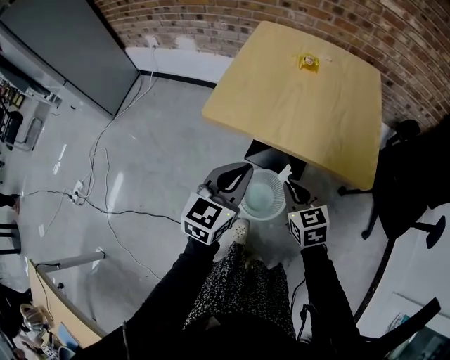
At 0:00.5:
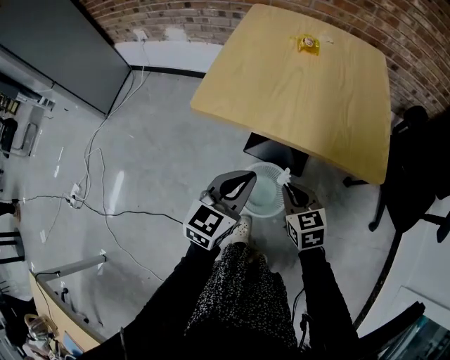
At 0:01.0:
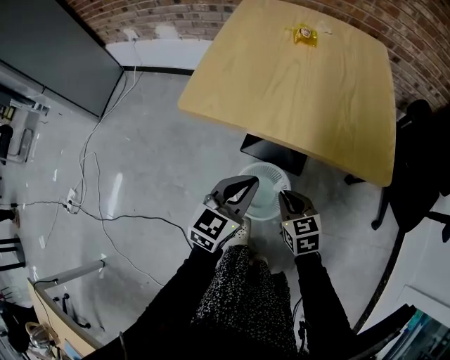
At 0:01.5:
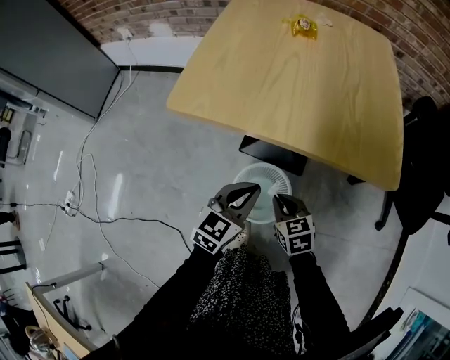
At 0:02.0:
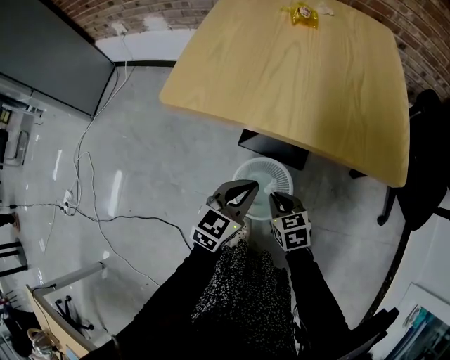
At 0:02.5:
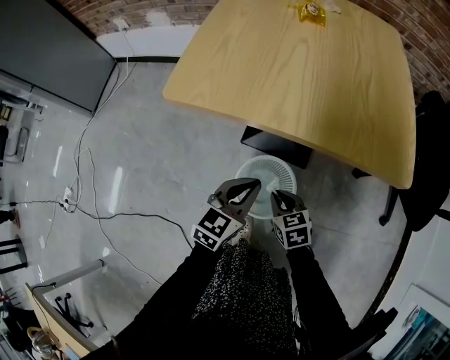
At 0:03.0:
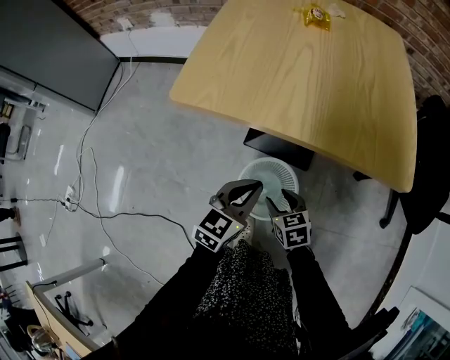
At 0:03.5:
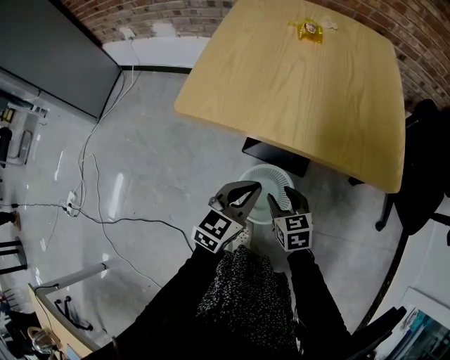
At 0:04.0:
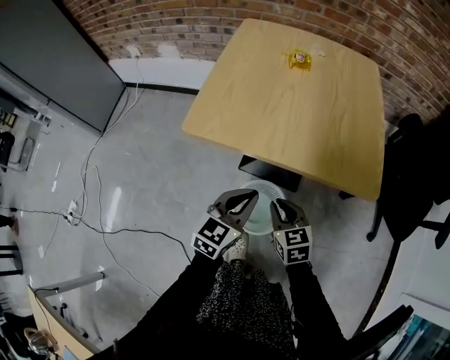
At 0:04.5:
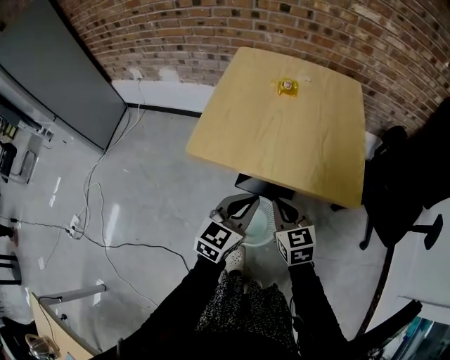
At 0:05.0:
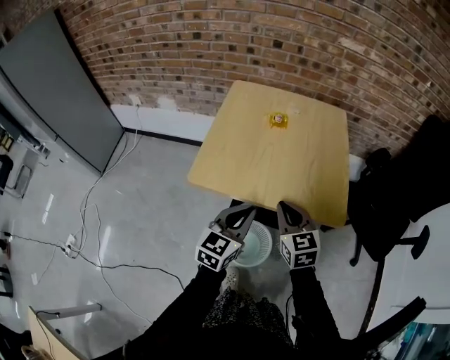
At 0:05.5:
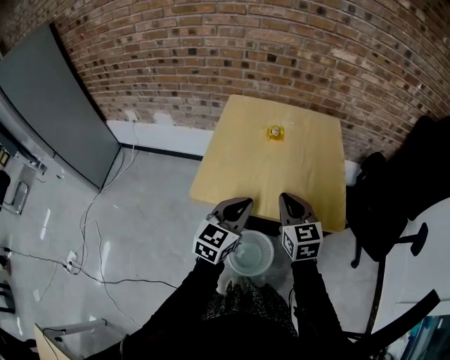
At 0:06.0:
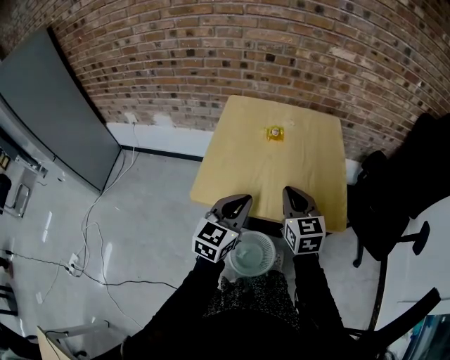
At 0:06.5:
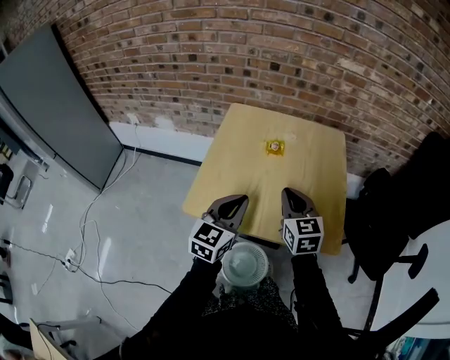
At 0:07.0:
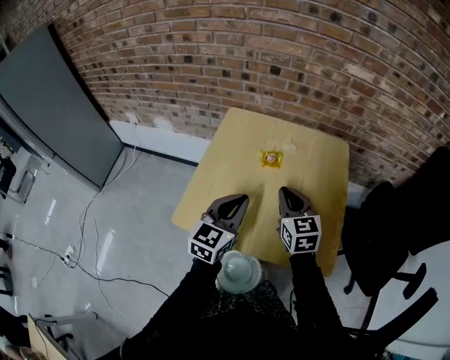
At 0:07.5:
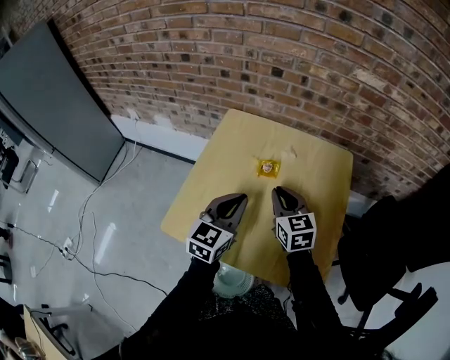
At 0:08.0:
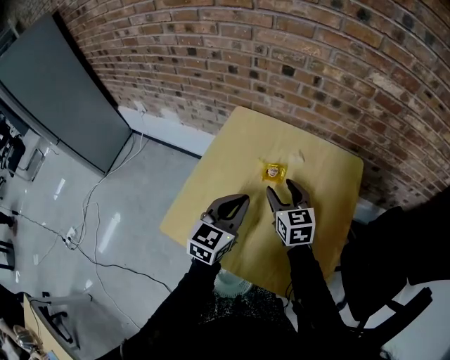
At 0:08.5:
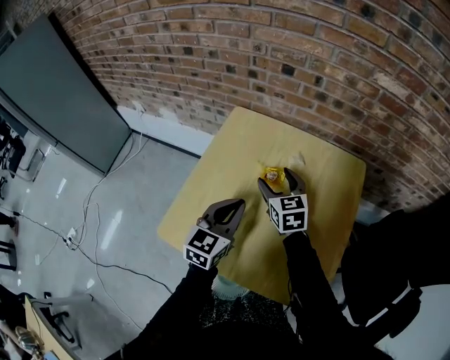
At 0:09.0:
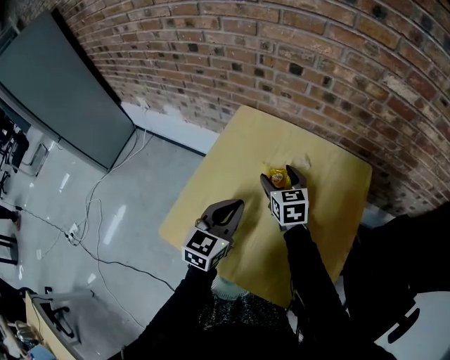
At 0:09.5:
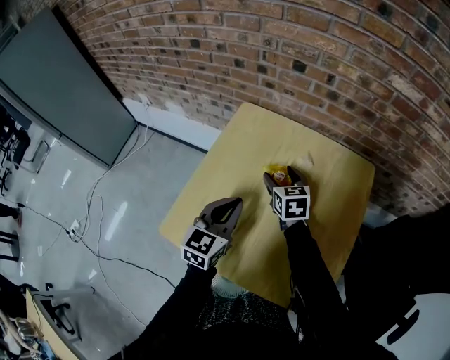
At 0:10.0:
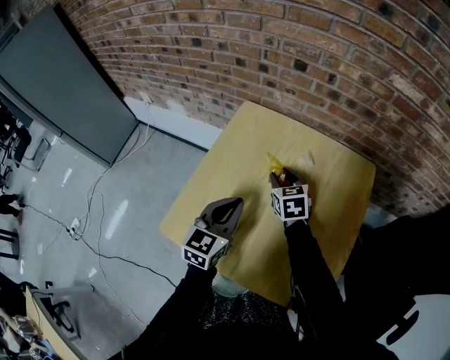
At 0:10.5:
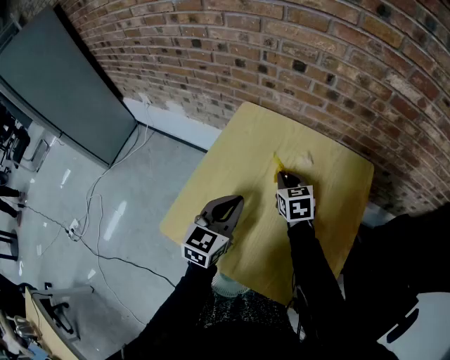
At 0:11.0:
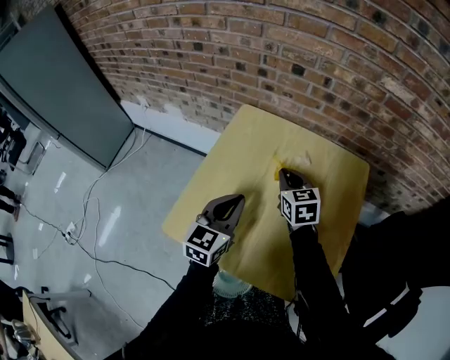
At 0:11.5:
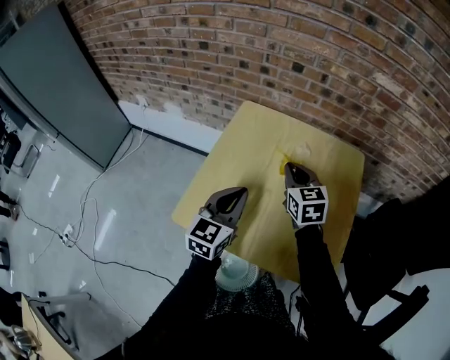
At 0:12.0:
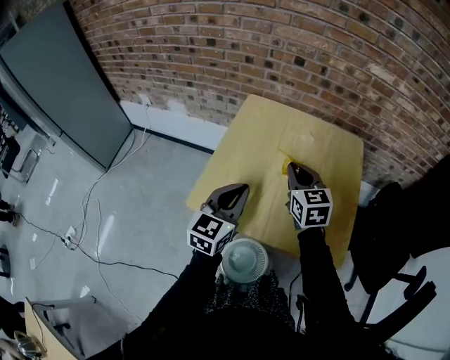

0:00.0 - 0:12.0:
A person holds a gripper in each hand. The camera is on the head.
0:00.0 - 0:02.0: Both grippers move downward, about 25 cm.
0:02.0 - 0:04.0: The two grippers go some 10 cm upward. The right gripper opens and closes again.
0:04.0 - 0:06.0: Both grippers travel together upward and forward, roughly 25 cm. The right gripper changes its angle by about 20 degrees.
0:06.0 - 0:08.0: Both grippers move forward, some 20 cm. The right gripper opens up.
0:08.0 - 0:10.0: The right gripper heads forward and downward, covering roughly 10 cm.
0:10.0 - 0:12.0: The right gripper goes approximately 20 cm backward and upward, and closes. The left gripper is displaced backward, to the left and upward by roughly 15 cm.

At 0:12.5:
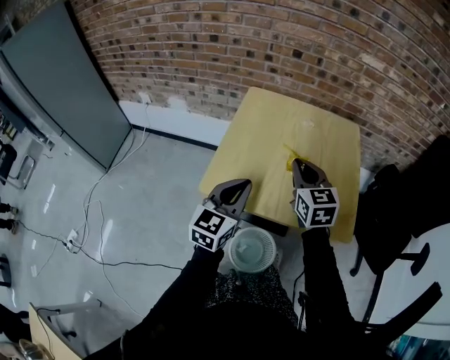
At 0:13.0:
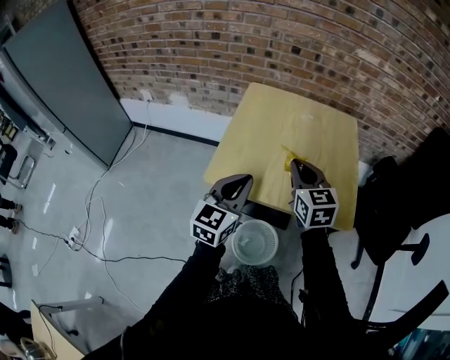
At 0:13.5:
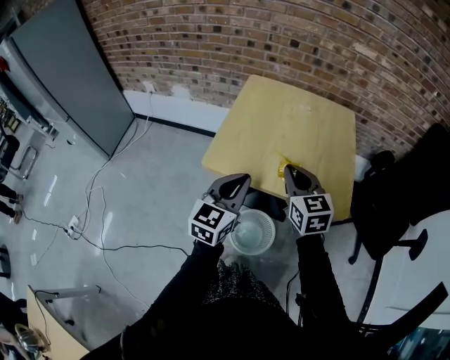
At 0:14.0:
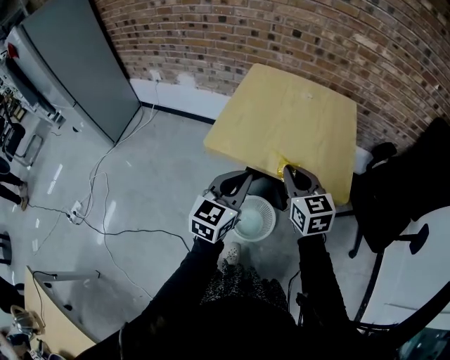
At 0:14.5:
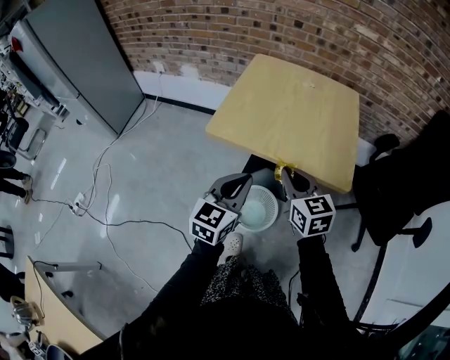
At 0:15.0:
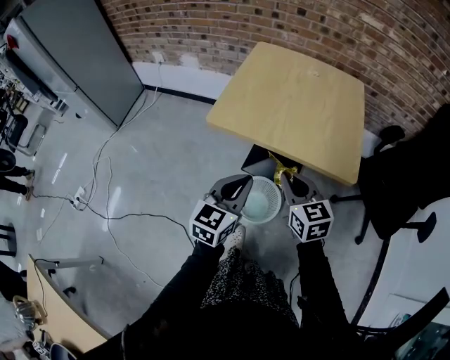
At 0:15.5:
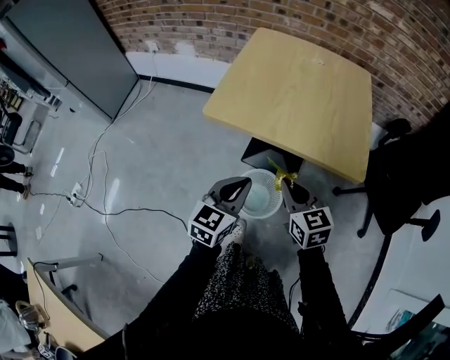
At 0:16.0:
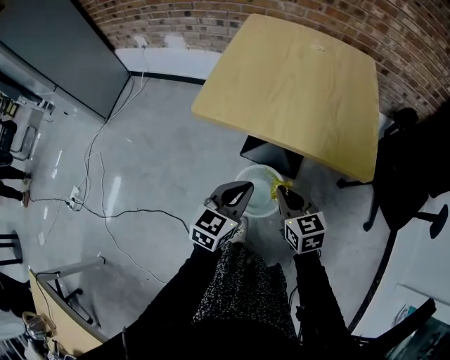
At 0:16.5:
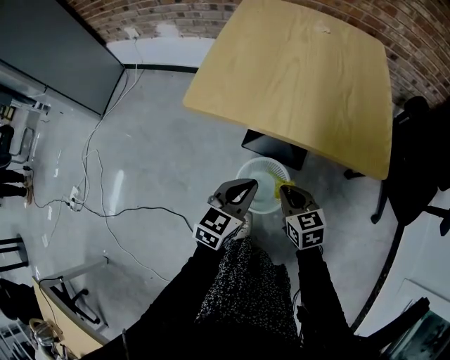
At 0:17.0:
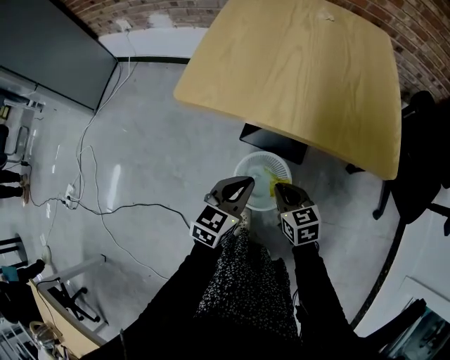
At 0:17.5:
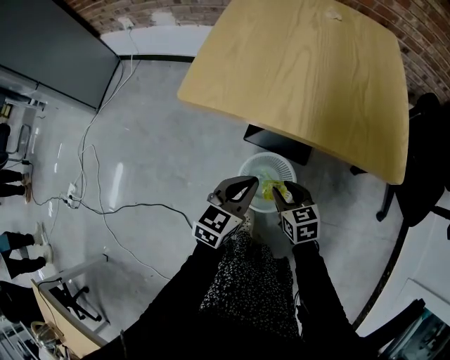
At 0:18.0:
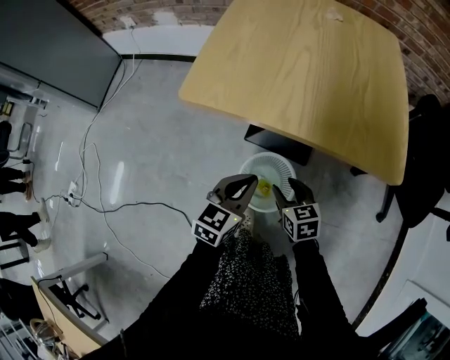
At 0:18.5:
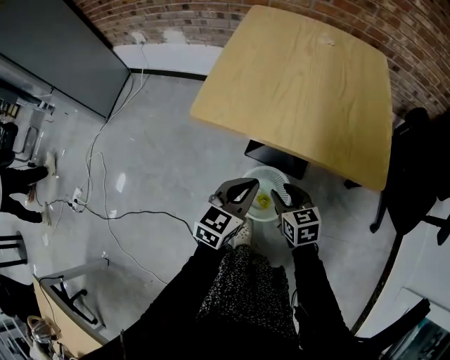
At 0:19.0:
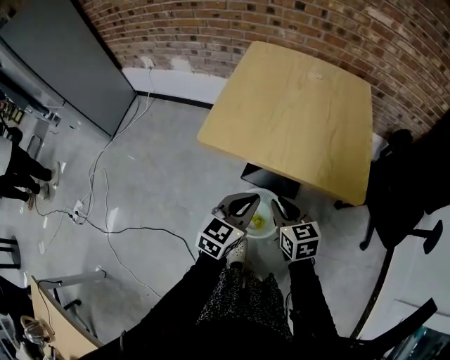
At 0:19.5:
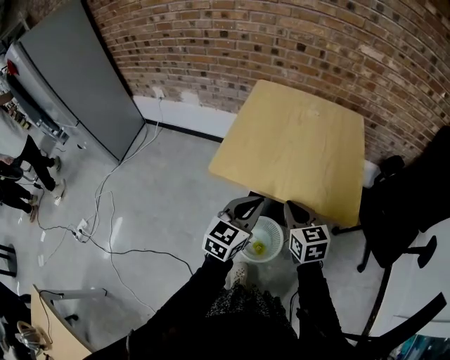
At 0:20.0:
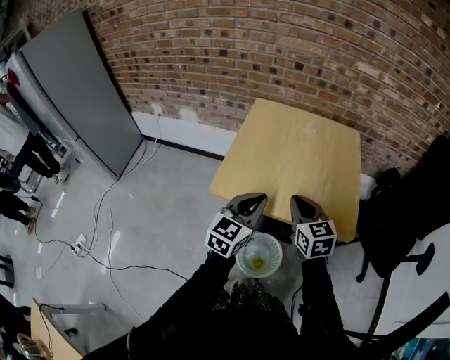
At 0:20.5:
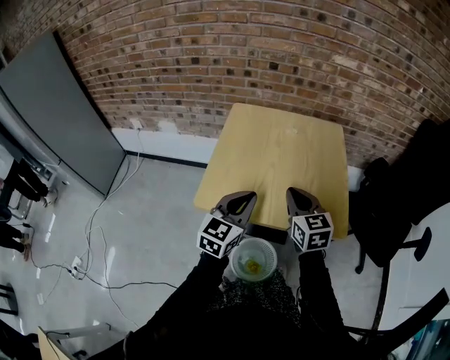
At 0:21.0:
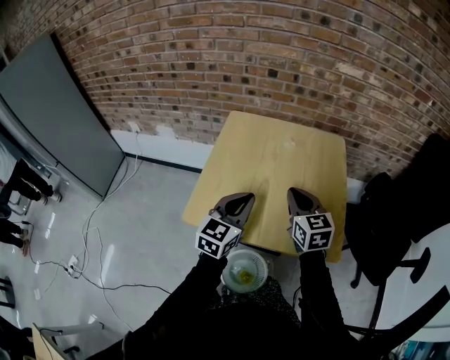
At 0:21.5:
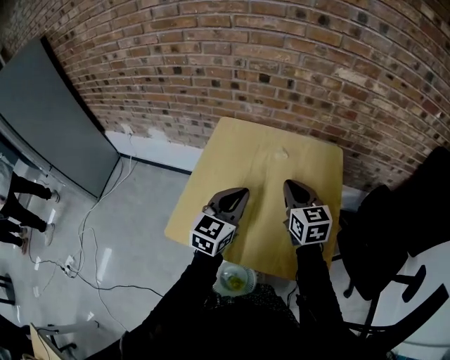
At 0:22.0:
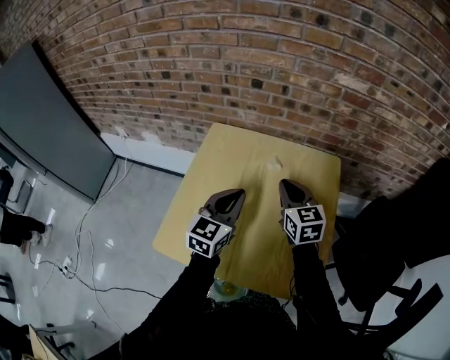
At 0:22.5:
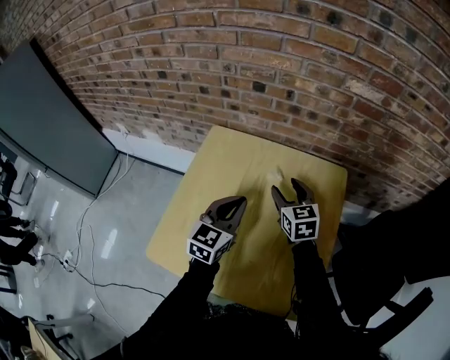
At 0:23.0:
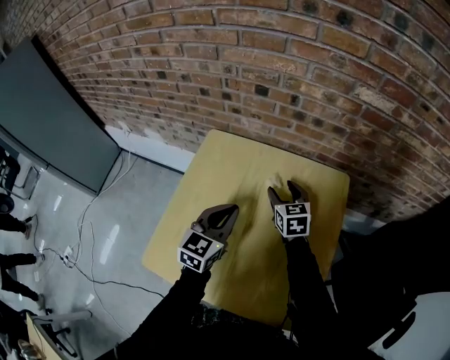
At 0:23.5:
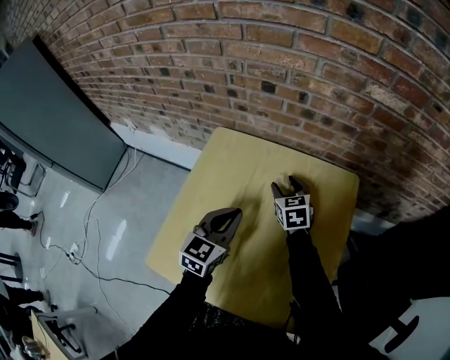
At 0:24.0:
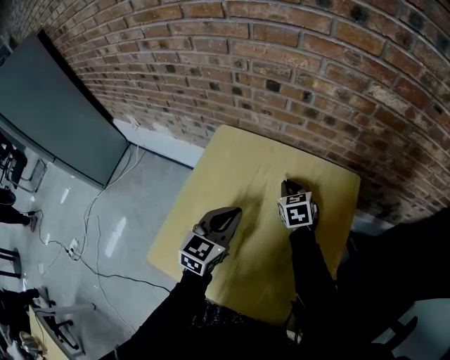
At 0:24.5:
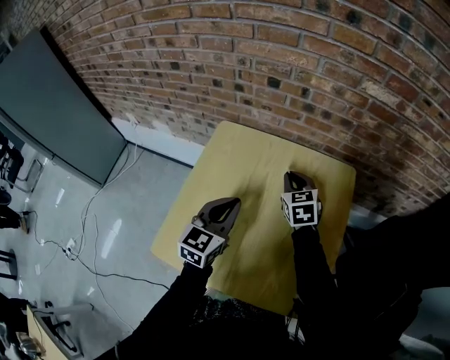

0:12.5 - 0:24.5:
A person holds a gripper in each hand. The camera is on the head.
0:12.5 - 0:14.5: The two grippers go some 20 cm backward.
0:14.5 - 0:16.5: The grippers both shift downward by approximately 25 cm.
0:16.5 - 0:18.5: The right gripper reaches roughly 10 cm downward, then returns, and opens.
0:18.5 - 0:20.5: The two grippers go some 30 cm upward and forward. The right gripper swivels some 30 degrees, and closes.
0:20.5 - 0:22.5: The grippers both shift forward by roughly 30 cm. The right gripper opens.
0:22.5 - 0:24.5: The right gripper goes downward and returns, roughly 10 cm each way, and closes.

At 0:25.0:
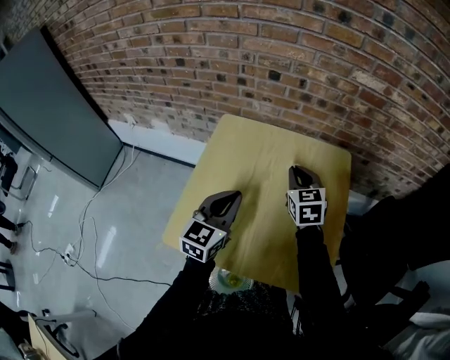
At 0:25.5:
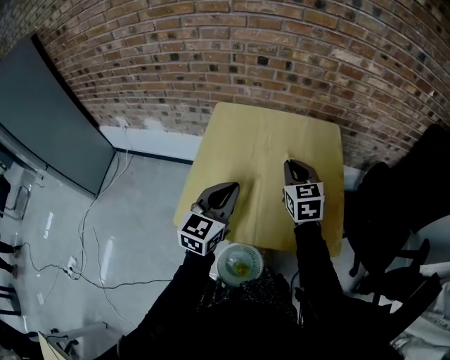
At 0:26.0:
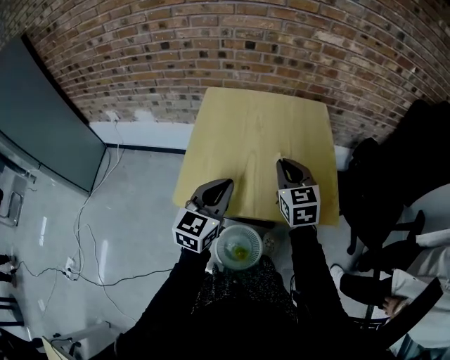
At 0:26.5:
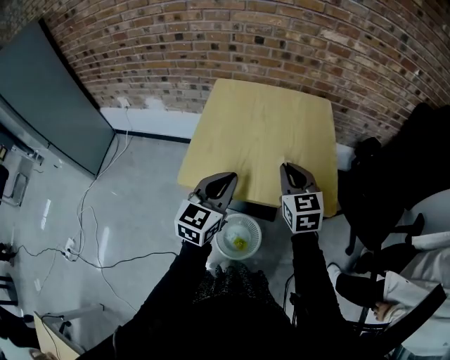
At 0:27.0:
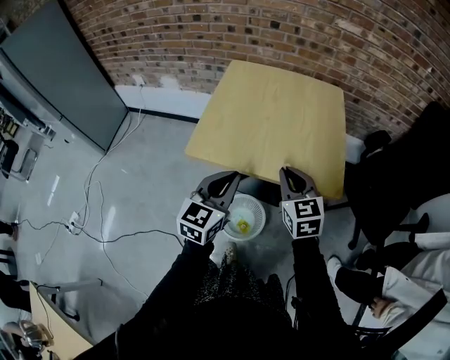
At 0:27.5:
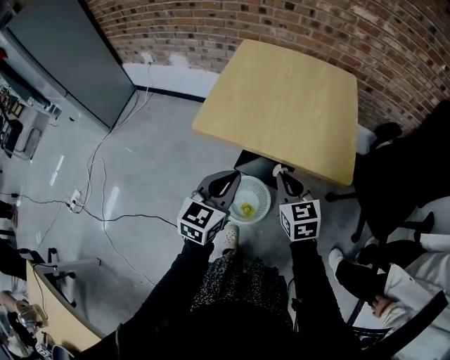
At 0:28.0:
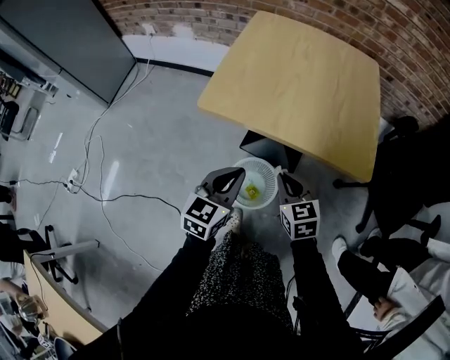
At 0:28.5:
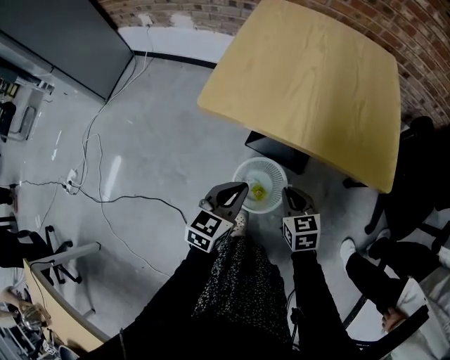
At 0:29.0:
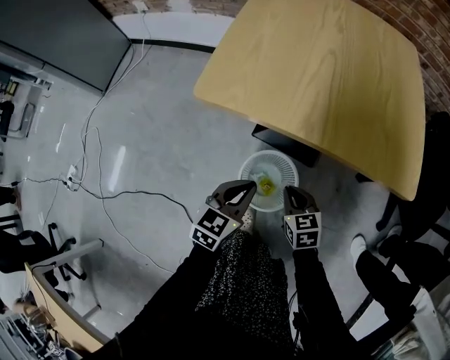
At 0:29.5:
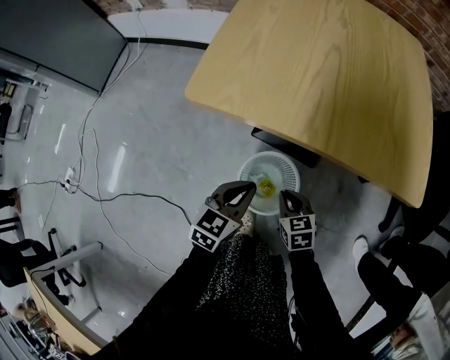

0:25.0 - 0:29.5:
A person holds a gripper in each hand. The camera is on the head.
0:25.0 - 0:27.0: The two grippers go approximately 30 cm backward.
0:27.0 - 0:29.5: Both grippers travel together downward, approximately 35 cm. The right gripper changes its angle by roughly 30 degrees. Meanwhile the left gripper rotates approximately 20 degrees.
